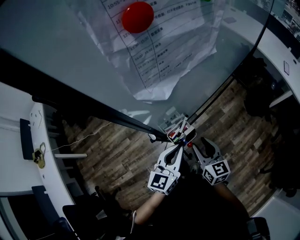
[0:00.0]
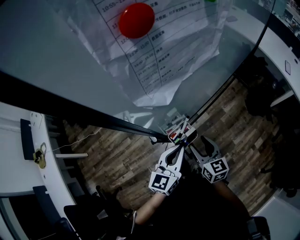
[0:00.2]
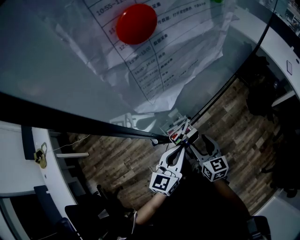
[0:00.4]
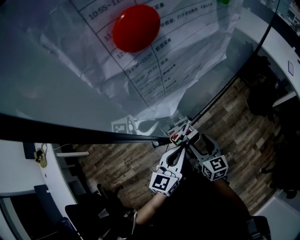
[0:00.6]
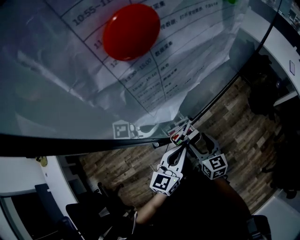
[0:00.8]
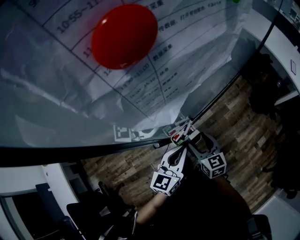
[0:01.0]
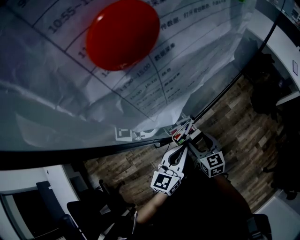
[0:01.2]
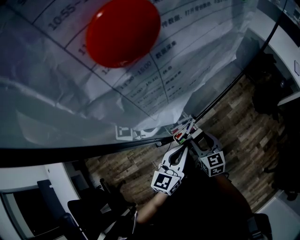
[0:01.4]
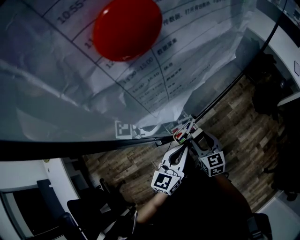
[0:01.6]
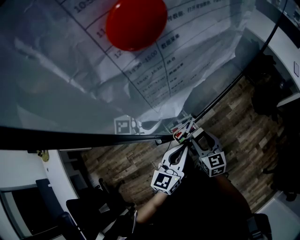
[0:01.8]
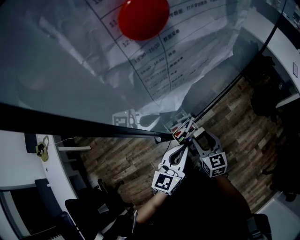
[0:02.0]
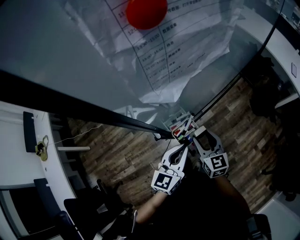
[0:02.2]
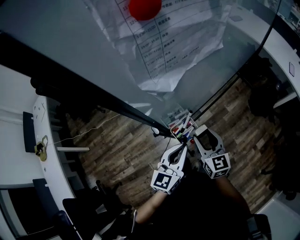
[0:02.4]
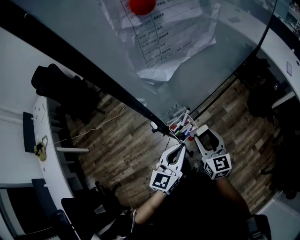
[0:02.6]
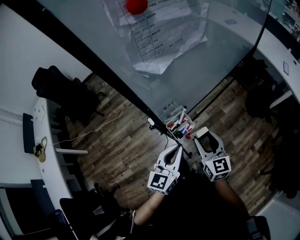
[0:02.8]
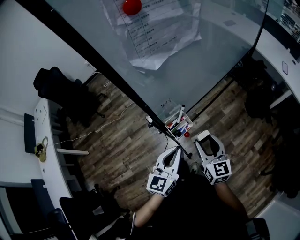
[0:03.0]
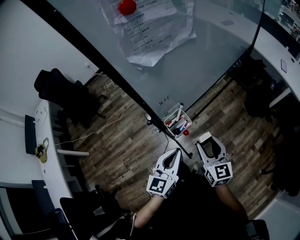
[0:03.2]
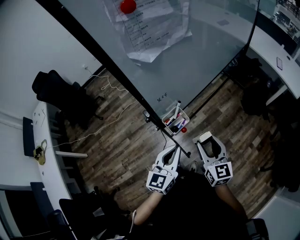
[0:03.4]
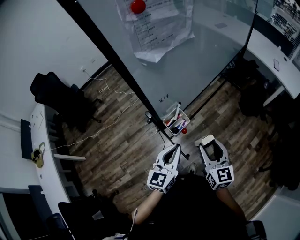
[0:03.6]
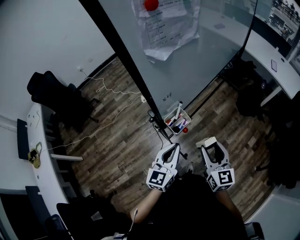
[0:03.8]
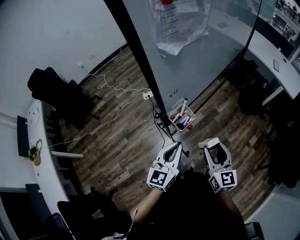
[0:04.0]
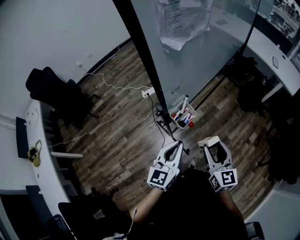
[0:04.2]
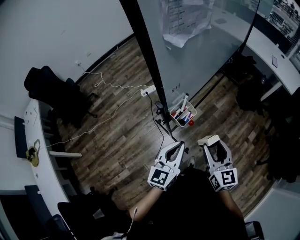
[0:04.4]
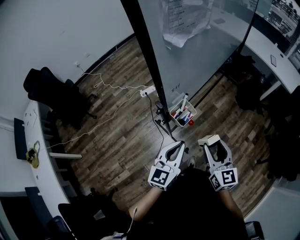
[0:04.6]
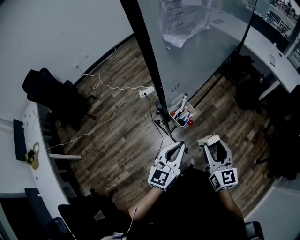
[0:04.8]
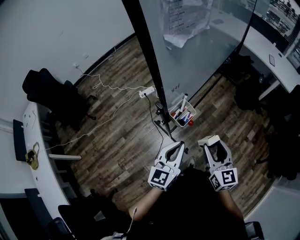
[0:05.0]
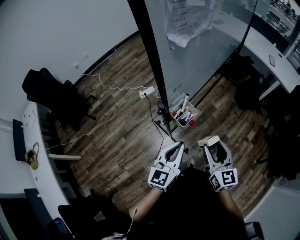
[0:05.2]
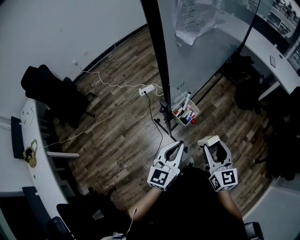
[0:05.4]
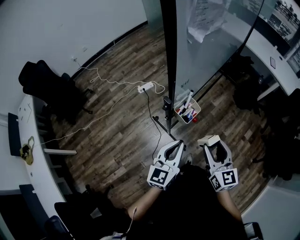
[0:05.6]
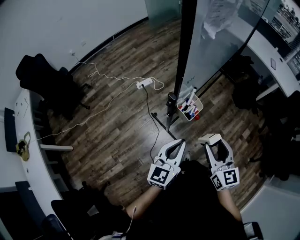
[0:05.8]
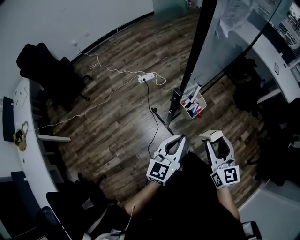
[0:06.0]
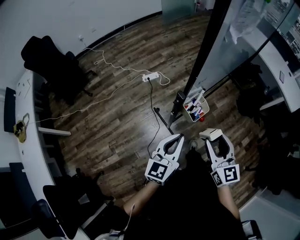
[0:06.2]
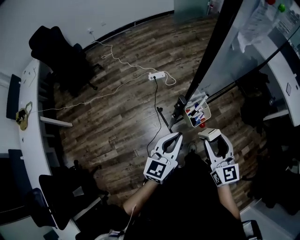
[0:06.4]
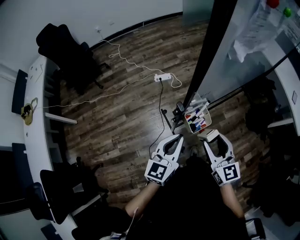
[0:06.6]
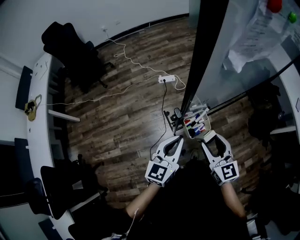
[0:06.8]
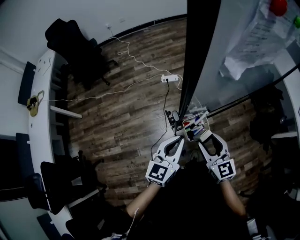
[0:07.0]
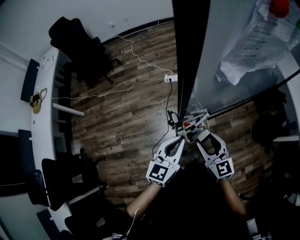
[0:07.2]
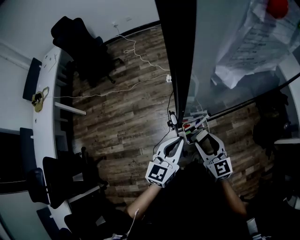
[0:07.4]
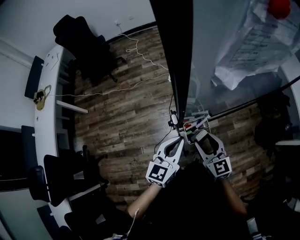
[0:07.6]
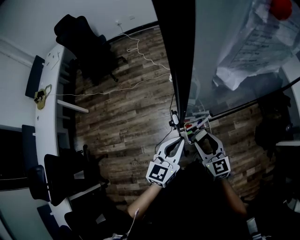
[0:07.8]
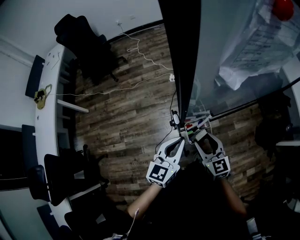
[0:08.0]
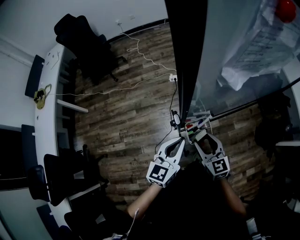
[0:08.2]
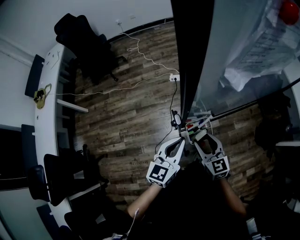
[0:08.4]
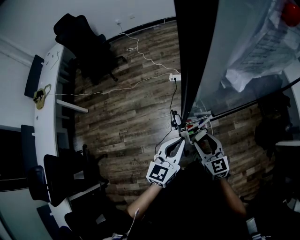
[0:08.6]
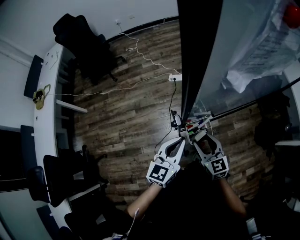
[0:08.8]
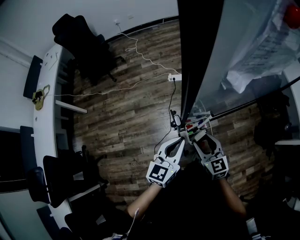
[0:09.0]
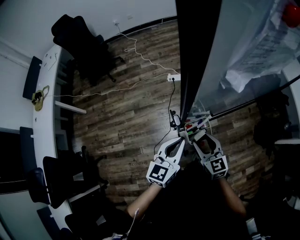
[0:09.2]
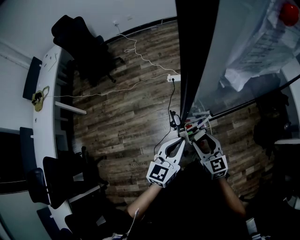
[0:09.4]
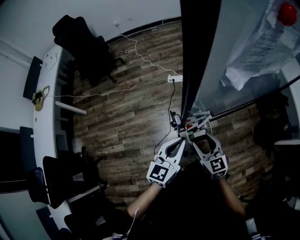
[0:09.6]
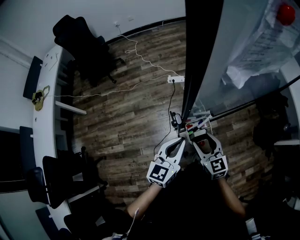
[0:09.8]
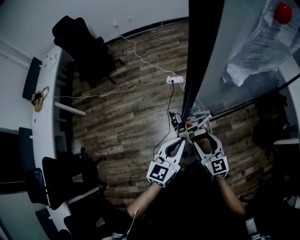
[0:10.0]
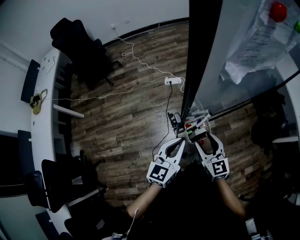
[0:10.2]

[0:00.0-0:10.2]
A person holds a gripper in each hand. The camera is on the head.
0:00.0 to 0:01.4: The right gripper heads downward, covering roughly 5 cm.
0:01.4 to 0:03.0: The right gripper goes approximately 15 cm upward, backward and to the right; the left gripper travels backward by about 10 cm.
0:03.0 to 0:04.4: The right gripper heads backward, covering some 10 cm.
0:04.4 to 0:05.8: There are only small adjustments of the grippers.
0:05.8 to 0:07.2: The left gripper moves approximately 10 cm, and turns by some 20 degrees. Meanwhile the right gripper changes place by roughly 15 cm, and rotates approximately 40 degrees.
0:07.2 to 0:08.8: The right gripper shifts by about 5 cm.
0:08.8 to 0:10.2: The grippers stay close to where they were, moving slightly.

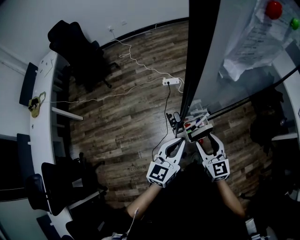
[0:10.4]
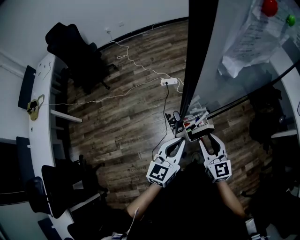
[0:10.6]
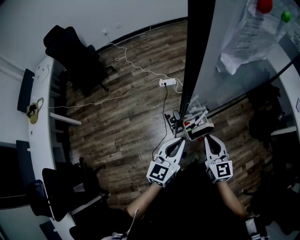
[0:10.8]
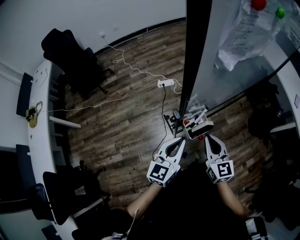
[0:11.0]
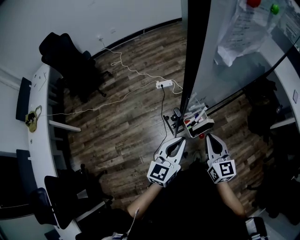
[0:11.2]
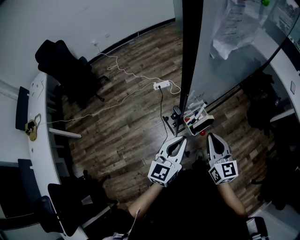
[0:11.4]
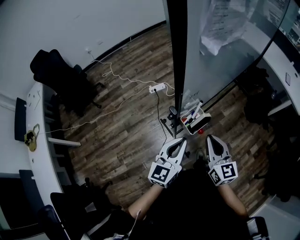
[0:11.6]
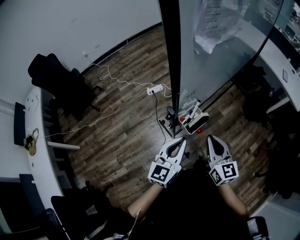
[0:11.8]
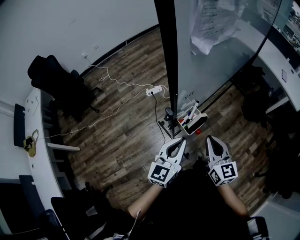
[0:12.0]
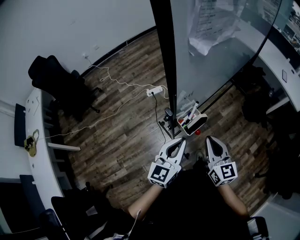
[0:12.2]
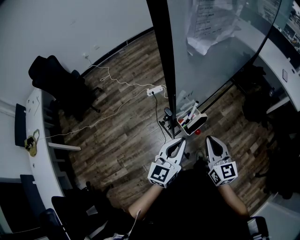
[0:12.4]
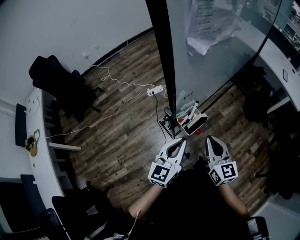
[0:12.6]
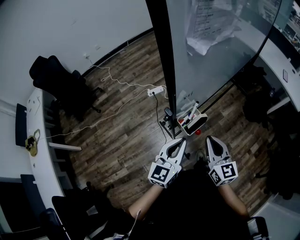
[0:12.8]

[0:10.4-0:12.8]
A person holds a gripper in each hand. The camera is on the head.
0:10.4 to 0:11.6: The right gripper goes some 5 cm backward, changes its angle by roughly 20 degrees, and closes up.
0:11.6 to 0:12.8: There are only small adjustments of the grippers.

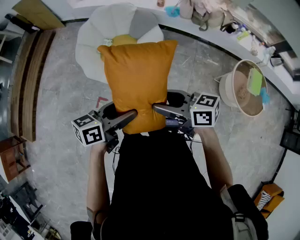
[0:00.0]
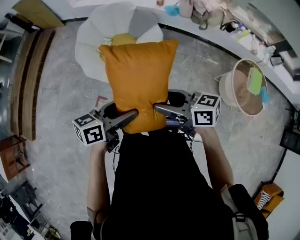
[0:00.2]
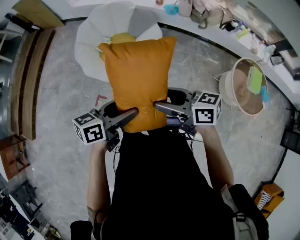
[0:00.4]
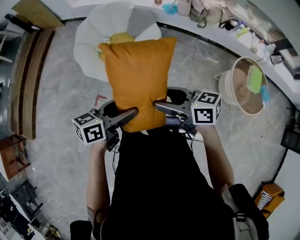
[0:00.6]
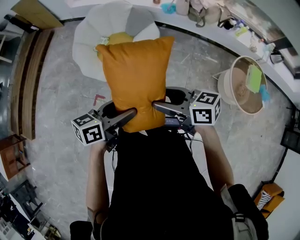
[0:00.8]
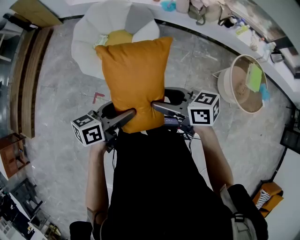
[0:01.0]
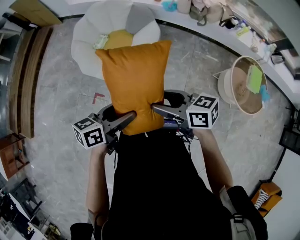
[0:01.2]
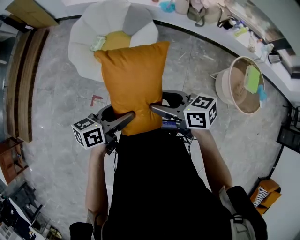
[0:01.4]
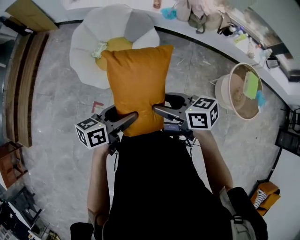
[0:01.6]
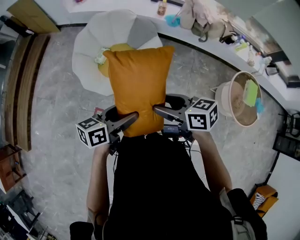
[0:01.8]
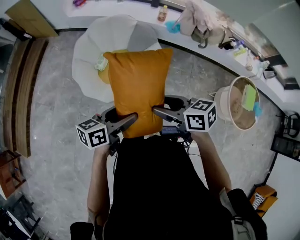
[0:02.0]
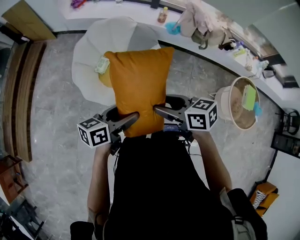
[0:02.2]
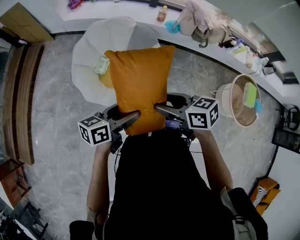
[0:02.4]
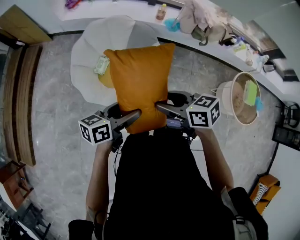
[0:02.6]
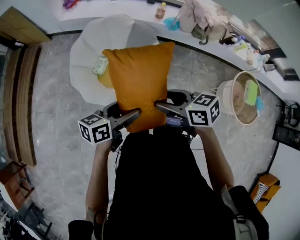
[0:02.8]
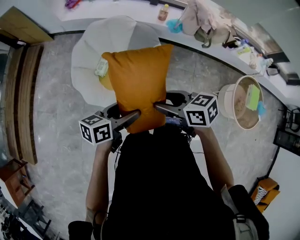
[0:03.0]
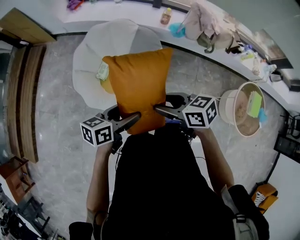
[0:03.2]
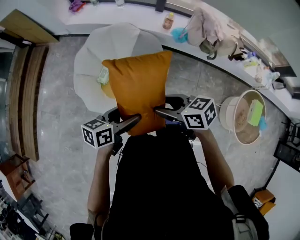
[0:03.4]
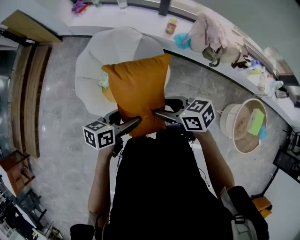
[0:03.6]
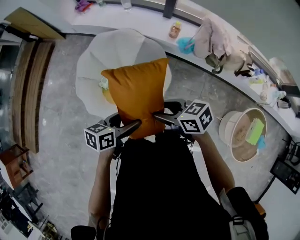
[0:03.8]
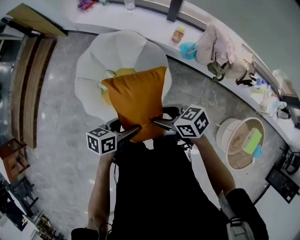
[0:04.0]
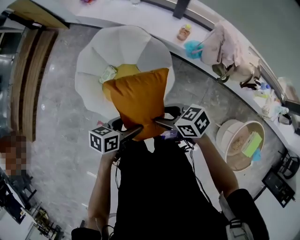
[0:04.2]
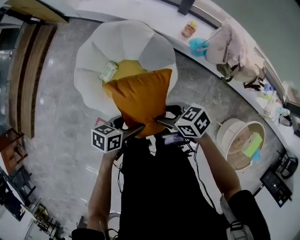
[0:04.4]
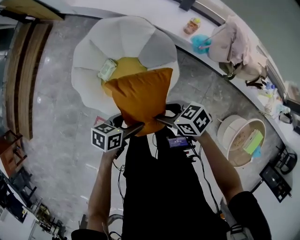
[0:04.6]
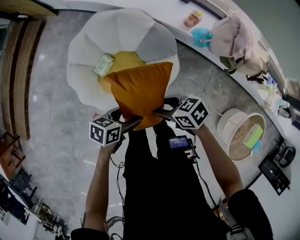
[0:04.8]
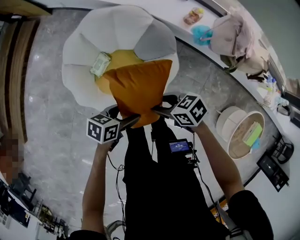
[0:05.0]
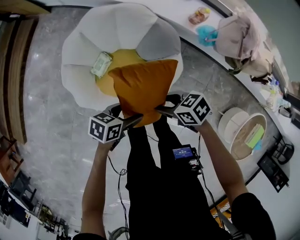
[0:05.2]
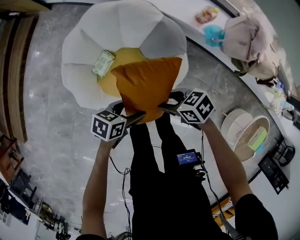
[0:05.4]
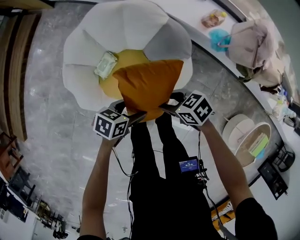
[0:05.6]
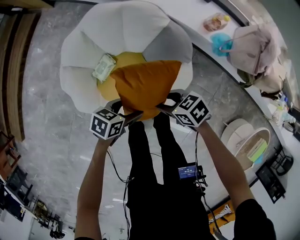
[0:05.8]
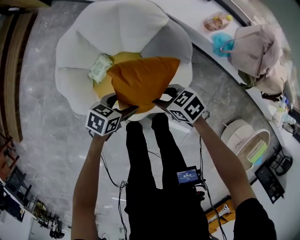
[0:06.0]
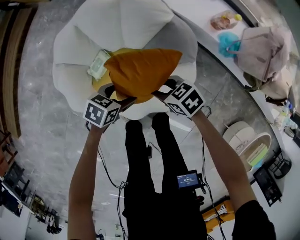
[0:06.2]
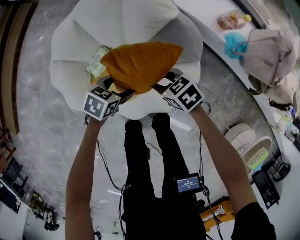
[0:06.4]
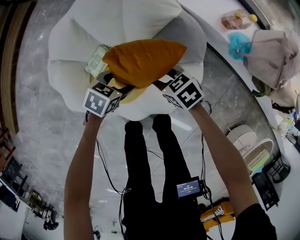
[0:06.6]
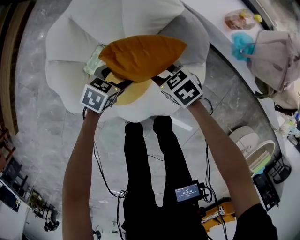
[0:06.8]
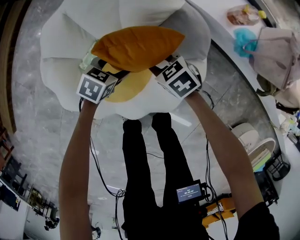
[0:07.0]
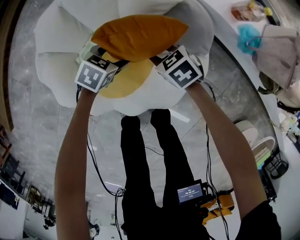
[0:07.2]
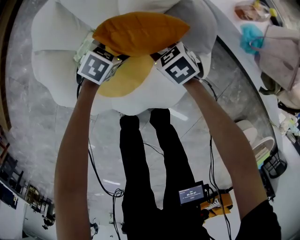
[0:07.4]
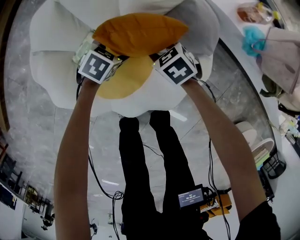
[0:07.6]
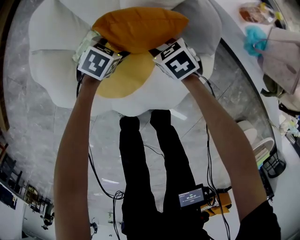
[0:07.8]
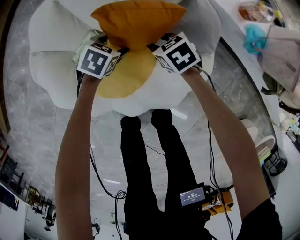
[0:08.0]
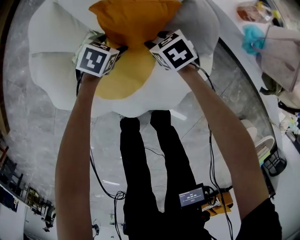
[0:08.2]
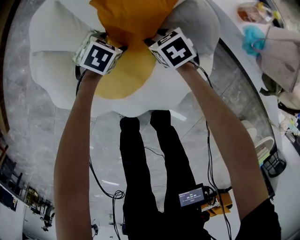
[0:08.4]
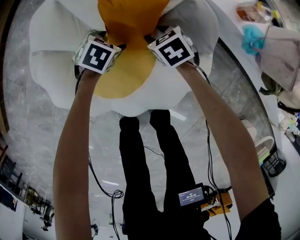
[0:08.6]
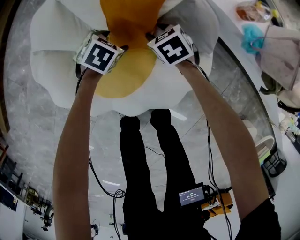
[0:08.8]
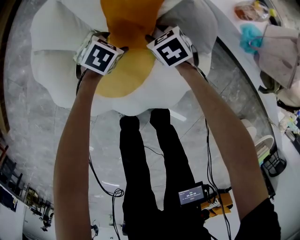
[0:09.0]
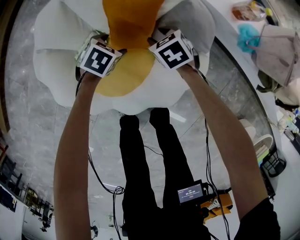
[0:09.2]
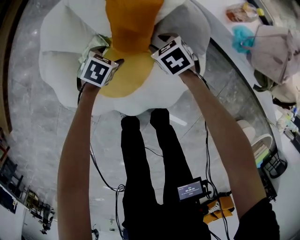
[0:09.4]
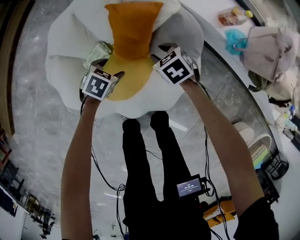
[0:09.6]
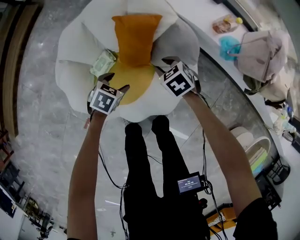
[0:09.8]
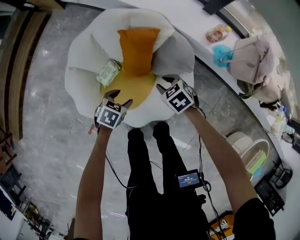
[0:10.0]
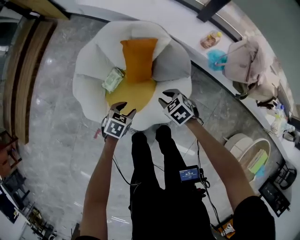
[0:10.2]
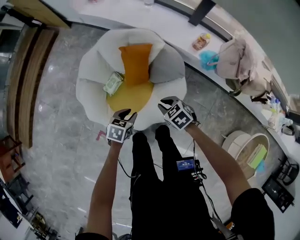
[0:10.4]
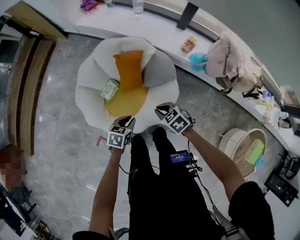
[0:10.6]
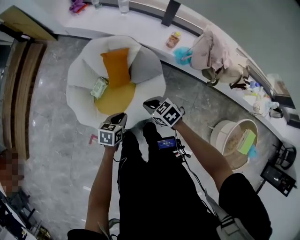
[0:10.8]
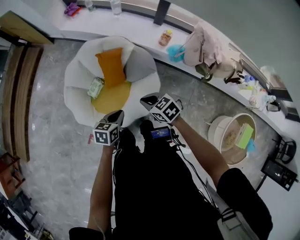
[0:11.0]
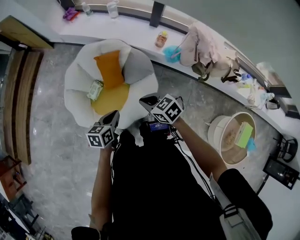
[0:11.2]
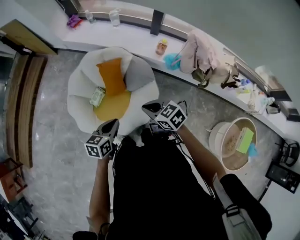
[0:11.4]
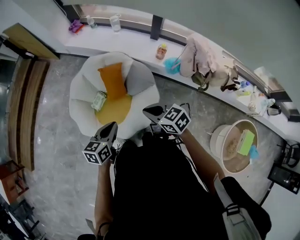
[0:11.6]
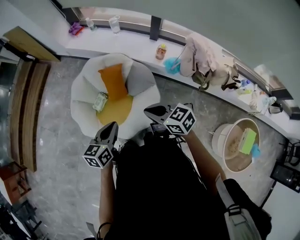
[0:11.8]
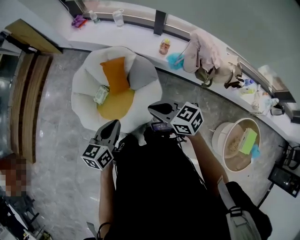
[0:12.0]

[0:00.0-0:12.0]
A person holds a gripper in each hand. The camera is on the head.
0:00.0 to 0:01.6: The left gripper shifts by about 5 cm. The right gripper moves about 5 cm.
0:01.6 to 0:03.0: Both grippers travel together forward, about 20 cm.
0:03.0 to 0:04.4: The left gripper moves some 20 cm, and rotates roughly 20 degrees; the right gripper ends up approximately 25 cm from where it was, and swivels approximately 30 degrees.
0:04.4 to 0:06.0: Both grippers travel together downward, some 25 cm.
0:06.0 to 0:07.6: The two grippers go approximately 20 cm downward. The left gripper turns by some 20 degrees. Meanwhile the right gripper changes its angle by roughly 20 degrees.
0:07.6 to 0:09.0: The grippers stay close to where they were, moving slightly.
0:09.0 to 0:10.4: The grippers both shift upward and backward by approximately 35 cm. The right gripper closes. The left gripper closes up.
0:10.4 to 0:12.0: Both grippers move upward, some 30 cm. The right gripper angles its fingers upward, by about 30 degrees; the left gripper angles its fingers upward, by roughly 30 degrees.
